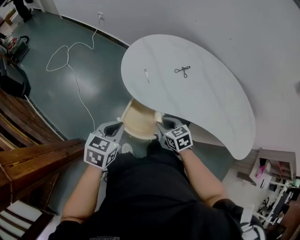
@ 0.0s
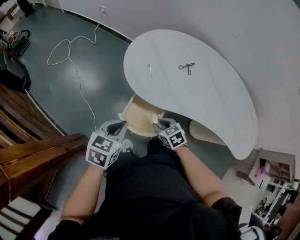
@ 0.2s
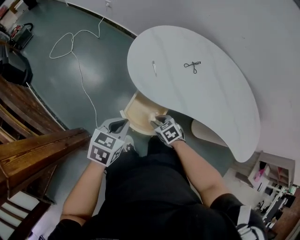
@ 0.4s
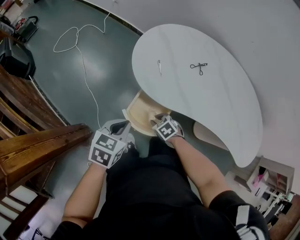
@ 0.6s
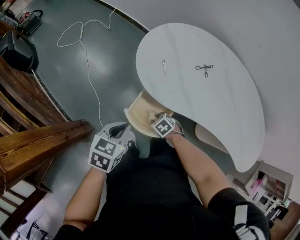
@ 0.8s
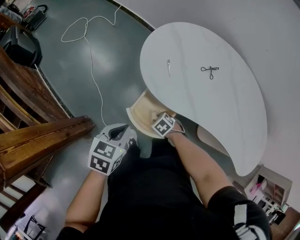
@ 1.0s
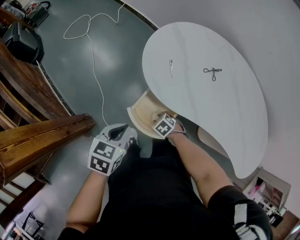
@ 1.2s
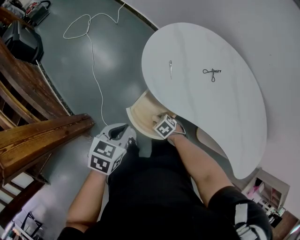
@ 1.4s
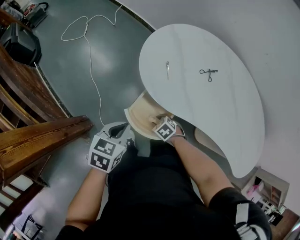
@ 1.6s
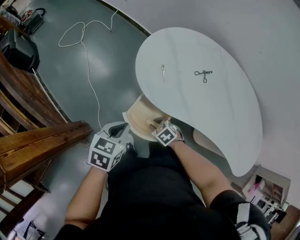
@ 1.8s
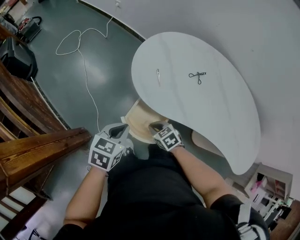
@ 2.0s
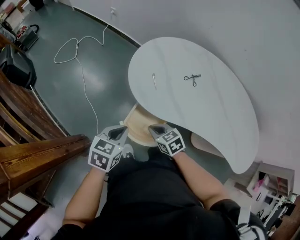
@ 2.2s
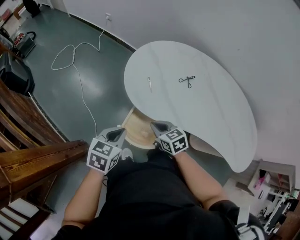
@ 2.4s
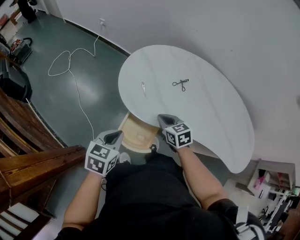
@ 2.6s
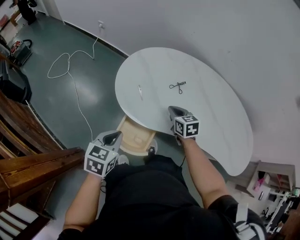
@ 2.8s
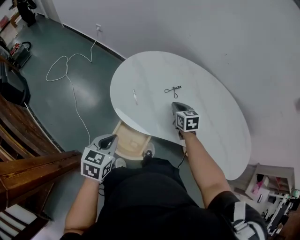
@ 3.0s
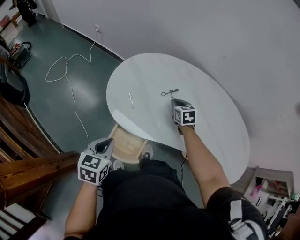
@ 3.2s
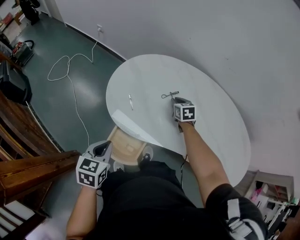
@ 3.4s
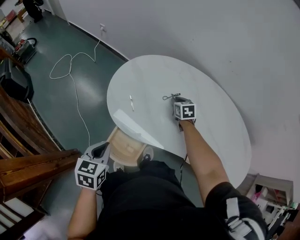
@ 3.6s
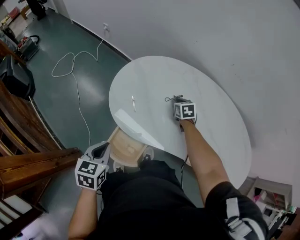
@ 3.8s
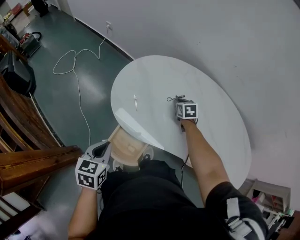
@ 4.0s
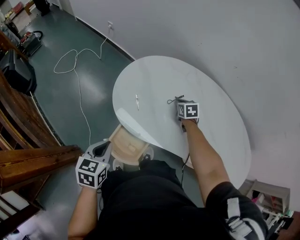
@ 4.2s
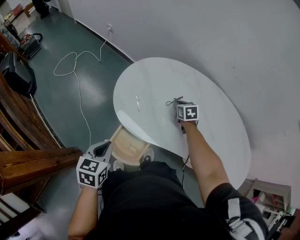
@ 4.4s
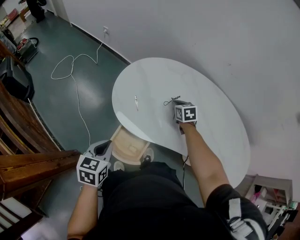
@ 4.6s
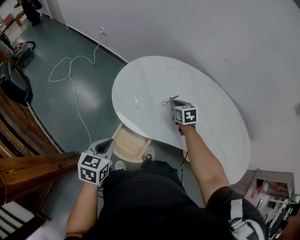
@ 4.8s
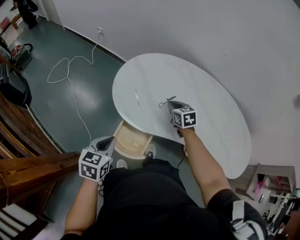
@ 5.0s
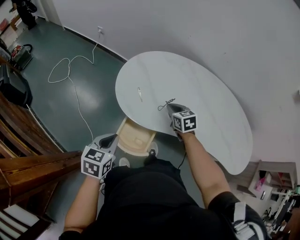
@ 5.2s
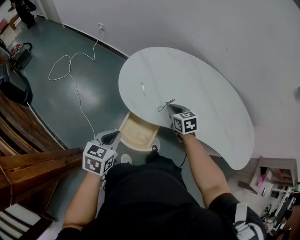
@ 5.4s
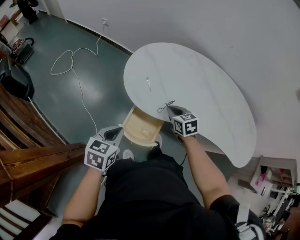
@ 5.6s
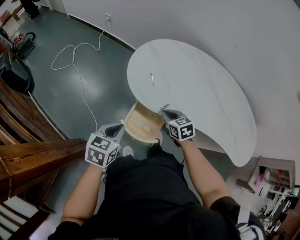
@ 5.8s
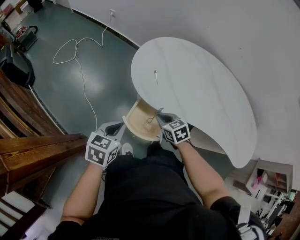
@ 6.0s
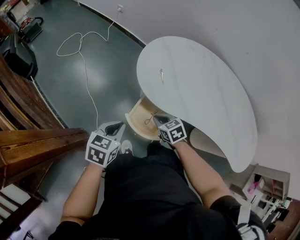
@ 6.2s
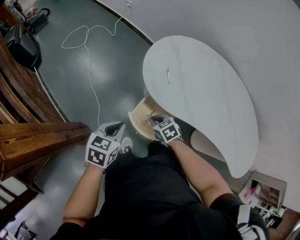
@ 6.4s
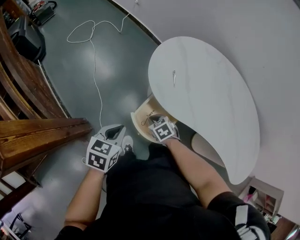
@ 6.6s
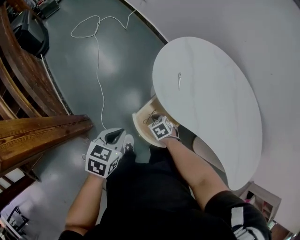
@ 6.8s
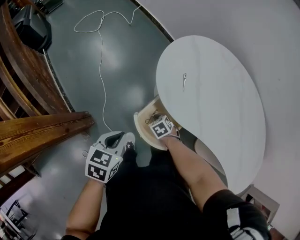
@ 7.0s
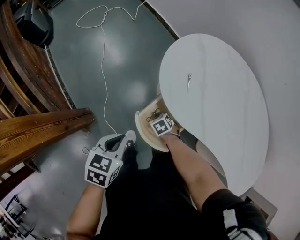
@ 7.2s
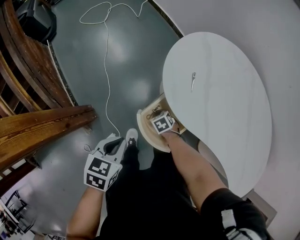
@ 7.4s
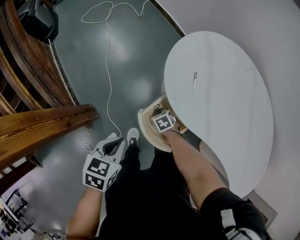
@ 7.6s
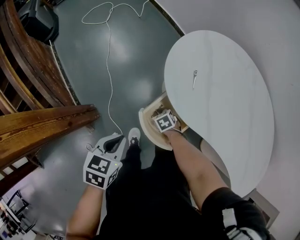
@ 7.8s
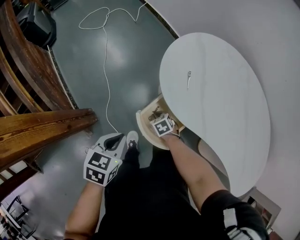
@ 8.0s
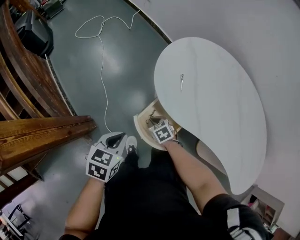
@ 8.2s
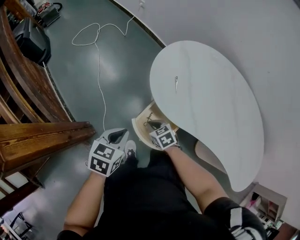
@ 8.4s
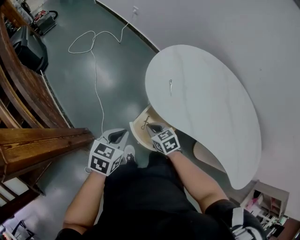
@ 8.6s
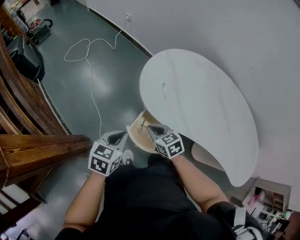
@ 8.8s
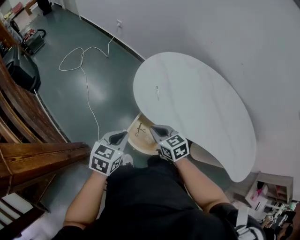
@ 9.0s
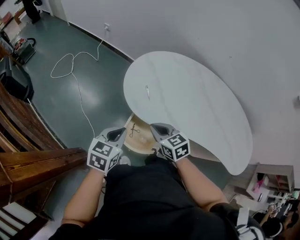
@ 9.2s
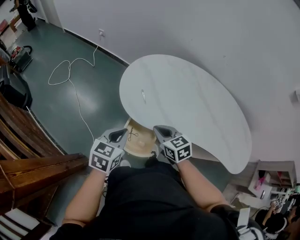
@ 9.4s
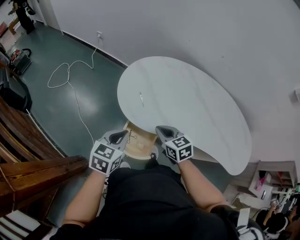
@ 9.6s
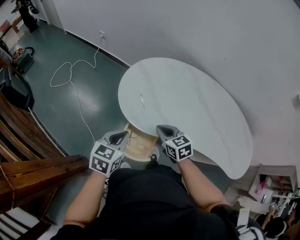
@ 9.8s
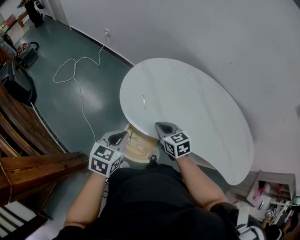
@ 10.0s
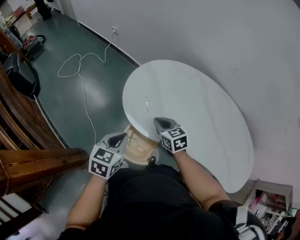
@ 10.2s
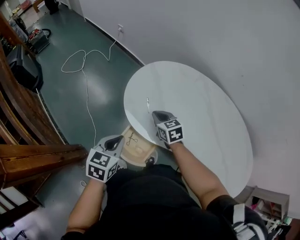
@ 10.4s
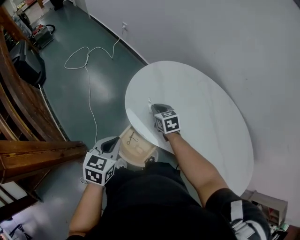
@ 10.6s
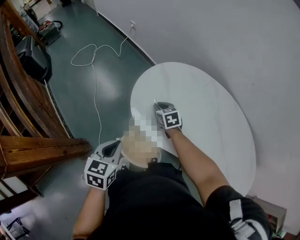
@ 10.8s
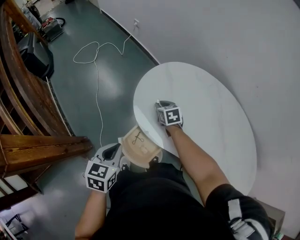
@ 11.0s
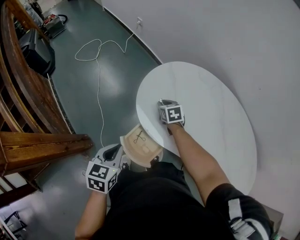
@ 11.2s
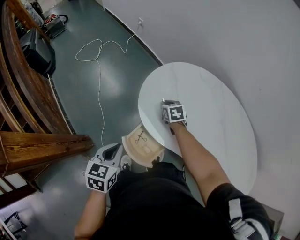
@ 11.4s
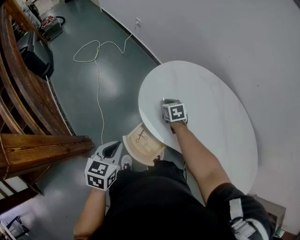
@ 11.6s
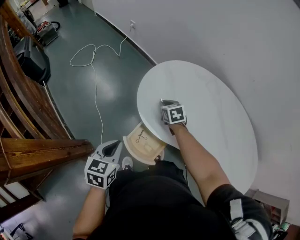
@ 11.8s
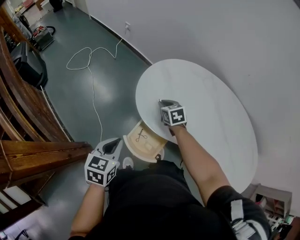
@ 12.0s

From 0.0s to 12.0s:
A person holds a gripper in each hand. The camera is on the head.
From 0.0s to 1.6s: The right gripper goes approximately 20 cm downward, and swivels approximately 40 degrees. Meanwhile the left gripper shifts about 5 cm downward.
From 1.6s to 3.0s: The left gripper ends up about 10 cm from where it was, while the right gripper ends up approximately 35 cm from where it was, changes its angle by approximately 50 degrees, and closes up.
From 3.0s to 4.4s: The right gripper travels forward and downward by approximately 10 cm.
From 4.4s to 6.0s: The right gripper shifts approximately 30 cm backward and to the left. Meanwhile the left gripper heads backward and to the left, covering some 5 cm.
From 6.0s to 7.6s: The left gripper is displaced downward by approximately 5 cm, and swivels some 20 degrees. Meanwhile the right gripper moves downward, some 25 cm, and changes its angle by roughly 30 degrees.
From 7.6s to 9.0s: The right gripper is displaced upward by about 30 cm, and tilts its fingers about 30 degrees upward; the left gripper travels upward and to the right by about 10 cm, and rotates roughly 20 degrees.
From 9.0s to 10.4s: The left gripper travels to the right and forward by roughly 5 cm, while the right gripper is displaced forward and to the right by about 15 cm.
From 10.4s to 12.0s: The left gripper shifts approximately 5 cm to the left.

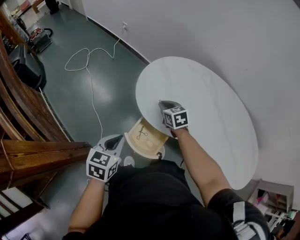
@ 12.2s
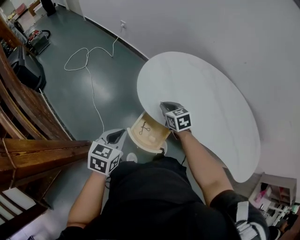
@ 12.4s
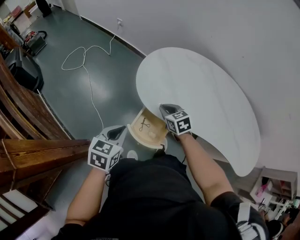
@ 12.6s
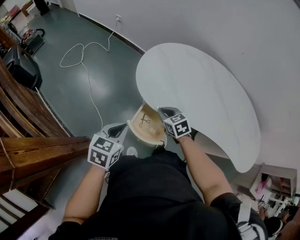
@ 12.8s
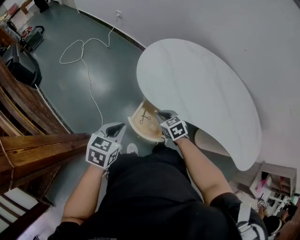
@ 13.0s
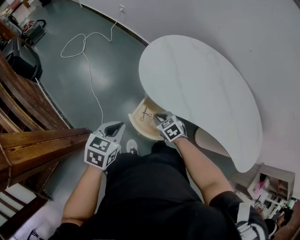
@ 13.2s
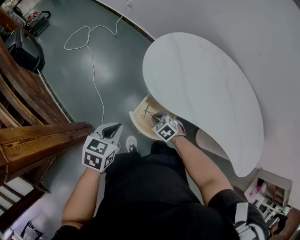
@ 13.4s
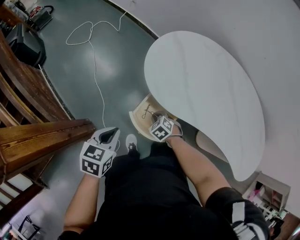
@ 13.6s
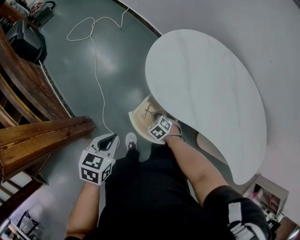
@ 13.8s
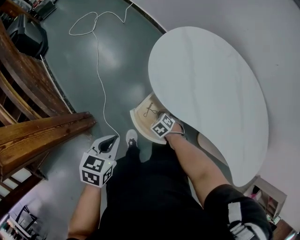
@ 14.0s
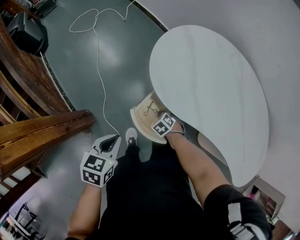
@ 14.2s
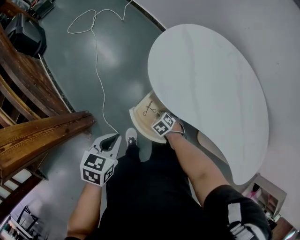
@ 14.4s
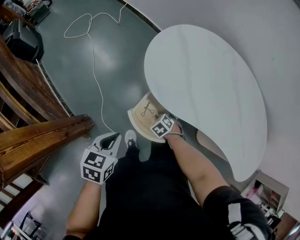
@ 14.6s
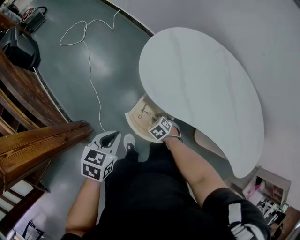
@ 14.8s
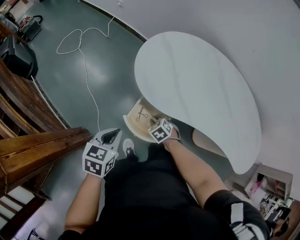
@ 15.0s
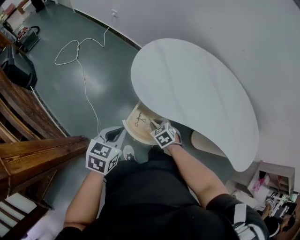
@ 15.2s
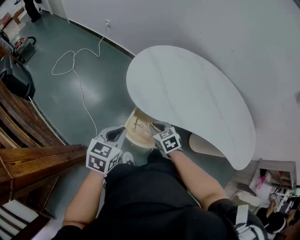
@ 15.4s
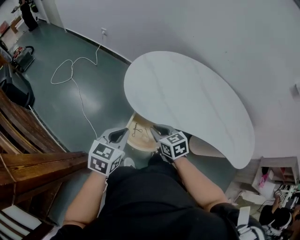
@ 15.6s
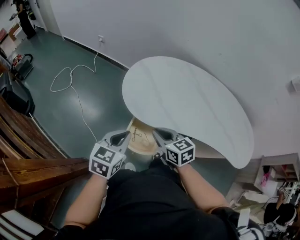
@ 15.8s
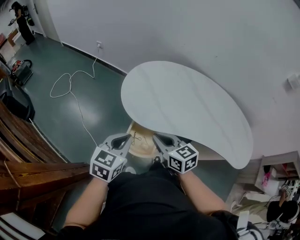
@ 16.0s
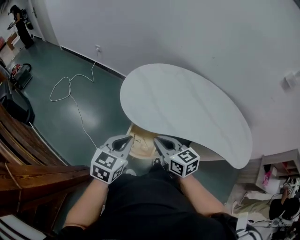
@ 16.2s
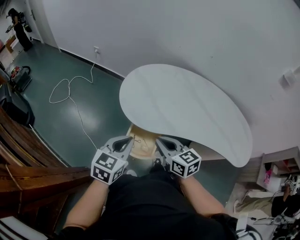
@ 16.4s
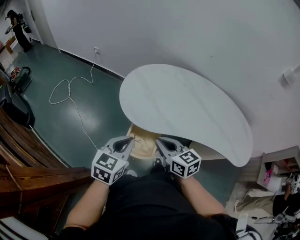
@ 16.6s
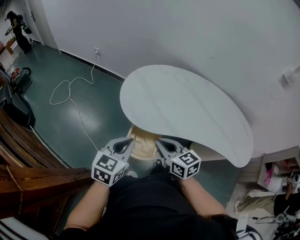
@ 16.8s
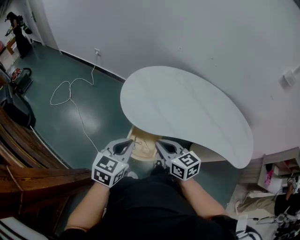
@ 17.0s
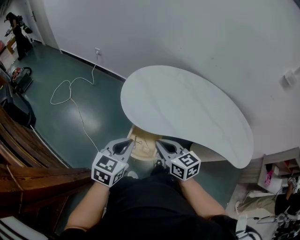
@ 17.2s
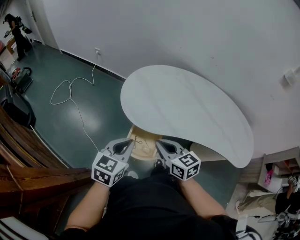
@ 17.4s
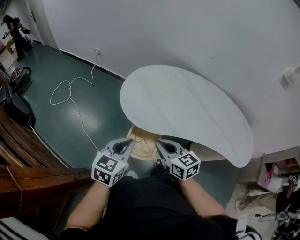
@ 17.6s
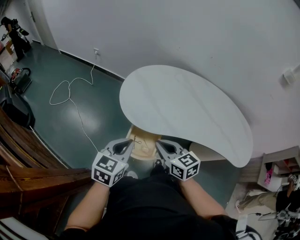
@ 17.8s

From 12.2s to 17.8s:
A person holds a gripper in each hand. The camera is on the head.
From 12.2s to 13.6s: The right gripper travels downward and backward by some 25 cm, and changes its angle by some 40 degrees, while the left gripper moves downward, some 5 cm.
From 13.6s to 15.0s: The right gripper moves about 5 cm downward and comes back.
From 15.0s to 16.4s: The left gripper heads upward and to the right, covering roughly 15 cm, and changes its angle by roughly 30 degrees. Meanwhile the right gripper heads upward, covering roughly 30 cm, and angles its fingers upward, by about 50 degrees.
From 16.4s to 17.8s: The two grippers keep their place.

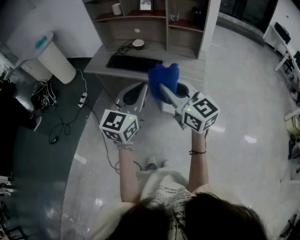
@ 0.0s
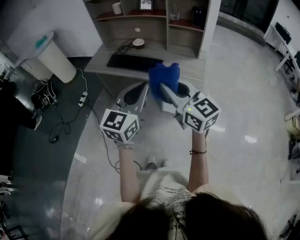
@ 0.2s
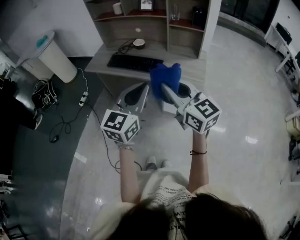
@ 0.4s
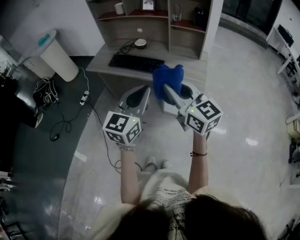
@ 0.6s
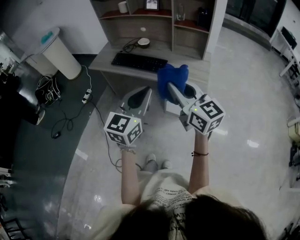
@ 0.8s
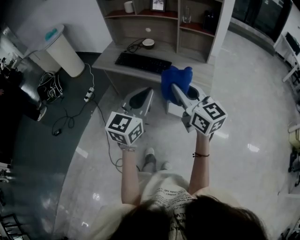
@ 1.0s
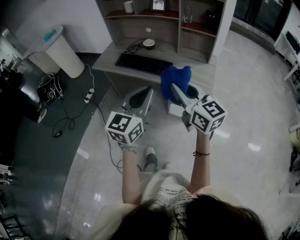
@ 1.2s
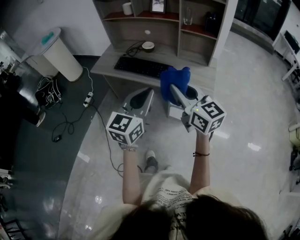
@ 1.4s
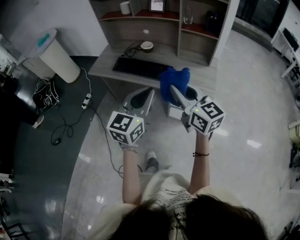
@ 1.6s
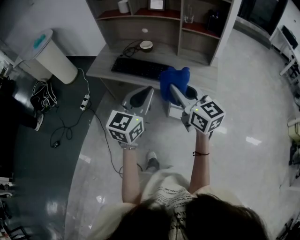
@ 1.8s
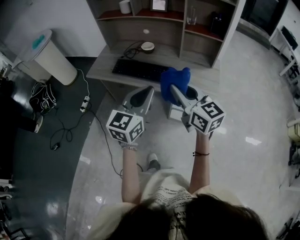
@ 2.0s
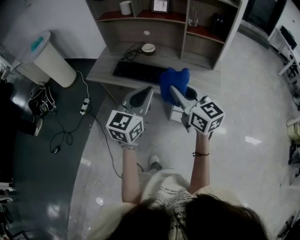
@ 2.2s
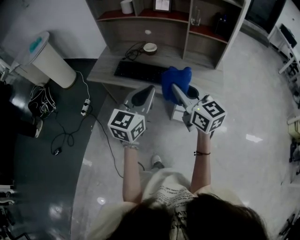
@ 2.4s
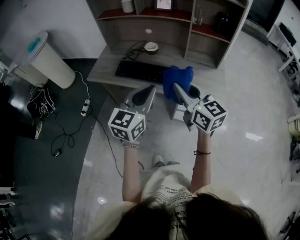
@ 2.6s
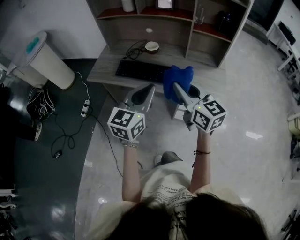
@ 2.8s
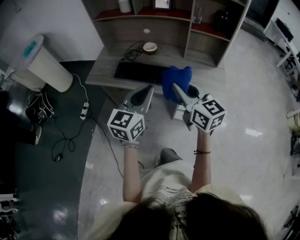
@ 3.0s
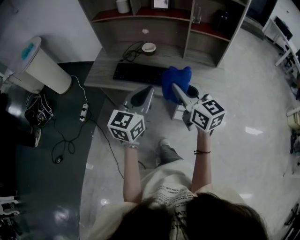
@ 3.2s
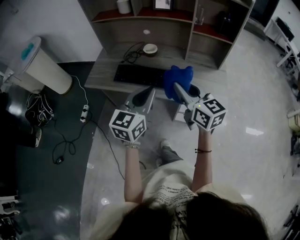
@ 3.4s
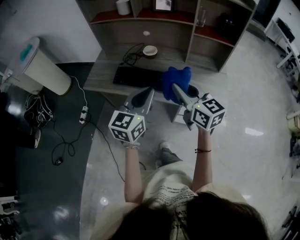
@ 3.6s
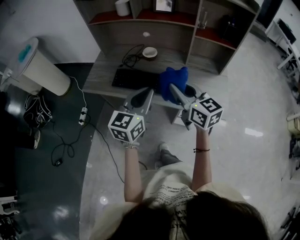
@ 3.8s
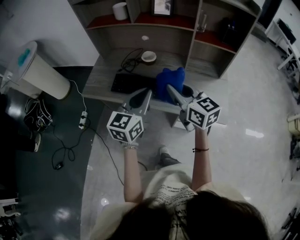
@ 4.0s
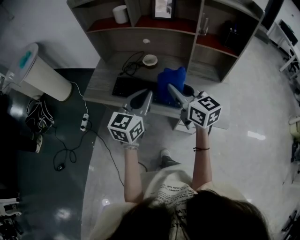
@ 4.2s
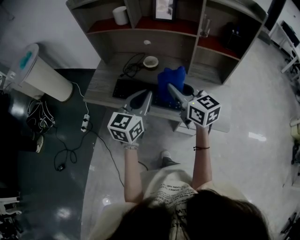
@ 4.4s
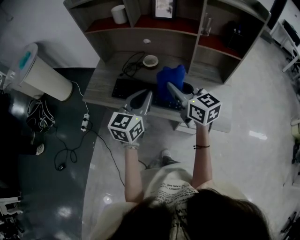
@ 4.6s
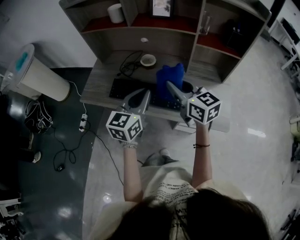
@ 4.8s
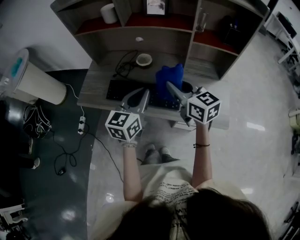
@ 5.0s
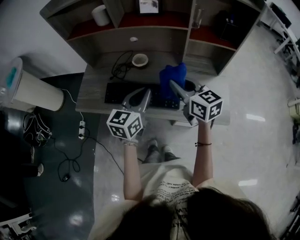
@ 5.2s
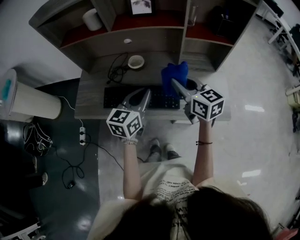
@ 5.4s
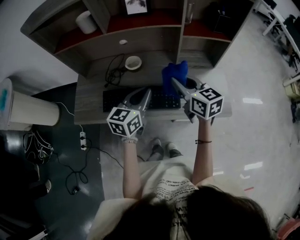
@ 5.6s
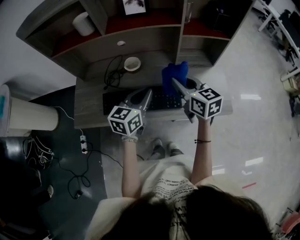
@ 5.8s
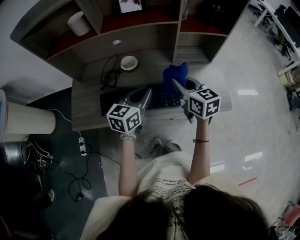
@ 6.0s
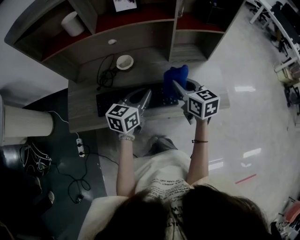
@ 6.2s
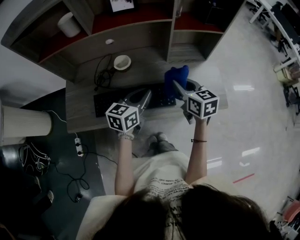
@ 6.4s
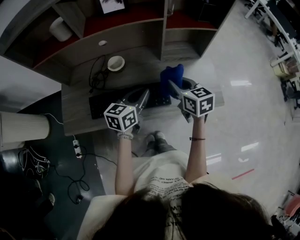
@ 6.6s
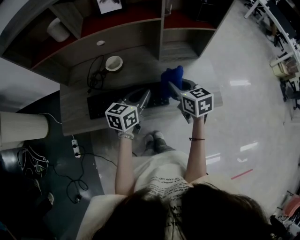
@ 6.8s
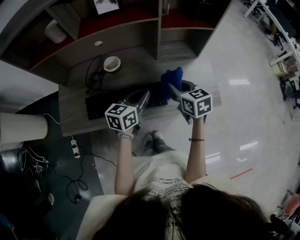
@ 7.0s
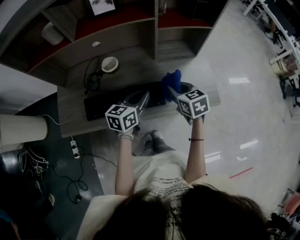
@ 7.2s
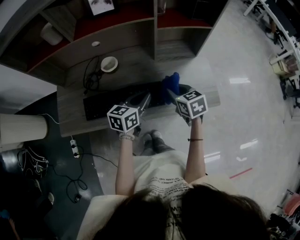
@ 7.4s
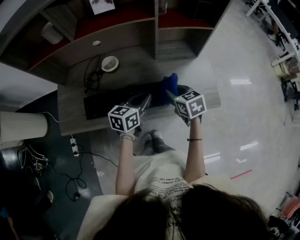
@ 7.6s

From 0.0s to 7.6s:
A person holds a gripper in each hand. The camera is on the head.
From 0.0s to 1.6s: Both grippers move forward, some 10 cm.
From 1.6s to 3.0s: The grippers both shift forward and to the left by roughly 15 cm.
From 3.0s to 4.6s: Both grippers travel together forward, roughly 15 cm.
From 4.6s to 6.0s: The left gripper is displaced forward and downward by roughly 15 cm, and rotates some 30 degrees. Meanwhile the right gripper is displaced downward and forward by approximately 10 cm, and rotates about 30 degrees.
From 6.0s to 7.6s: The left gripper travels to the right and downward by roughly 10 cm. The right gripper travels downward and to the right by roughly 10 cm, and changes its angle by approximately 20 degrees.
